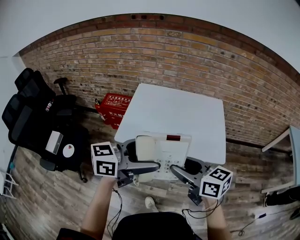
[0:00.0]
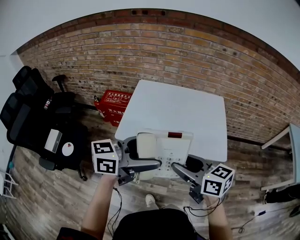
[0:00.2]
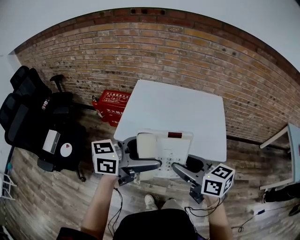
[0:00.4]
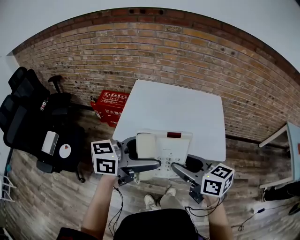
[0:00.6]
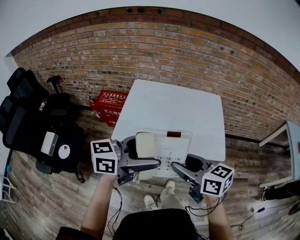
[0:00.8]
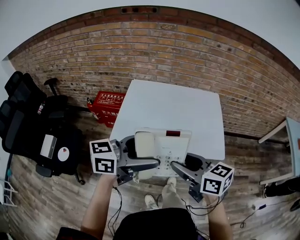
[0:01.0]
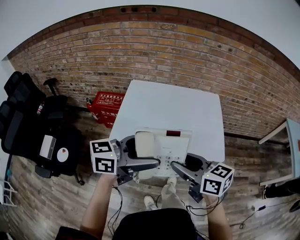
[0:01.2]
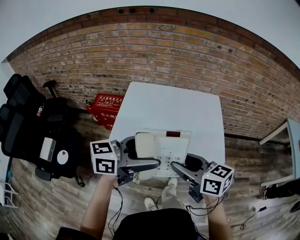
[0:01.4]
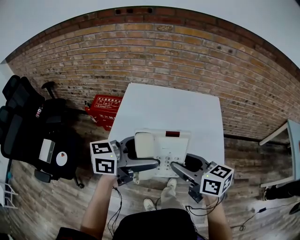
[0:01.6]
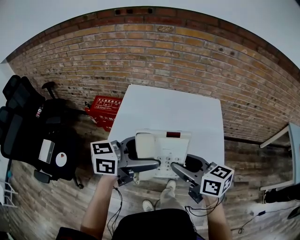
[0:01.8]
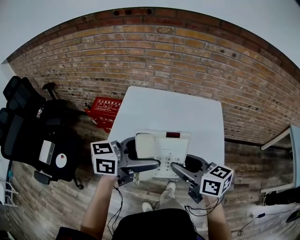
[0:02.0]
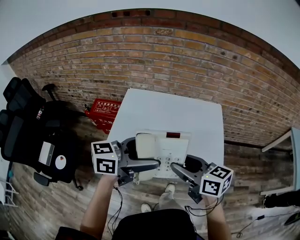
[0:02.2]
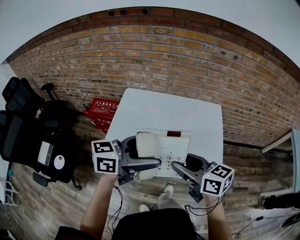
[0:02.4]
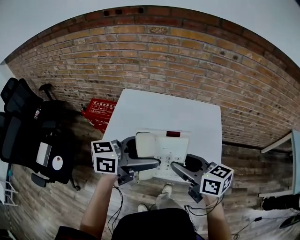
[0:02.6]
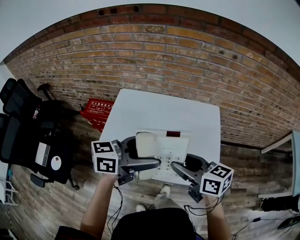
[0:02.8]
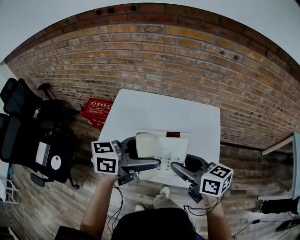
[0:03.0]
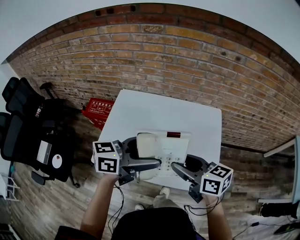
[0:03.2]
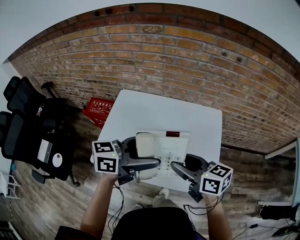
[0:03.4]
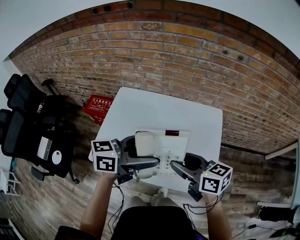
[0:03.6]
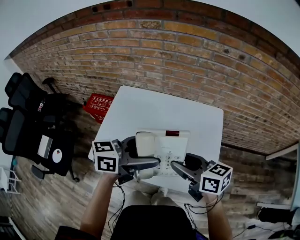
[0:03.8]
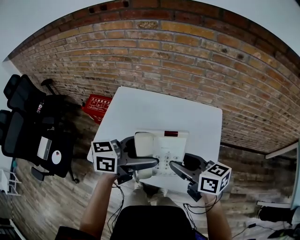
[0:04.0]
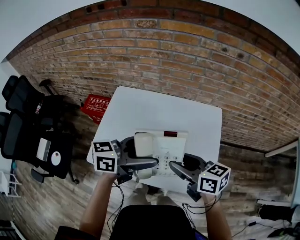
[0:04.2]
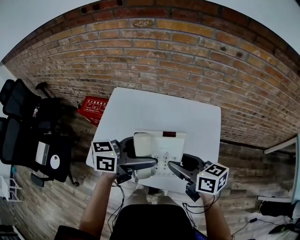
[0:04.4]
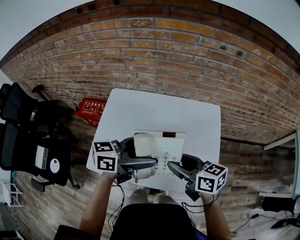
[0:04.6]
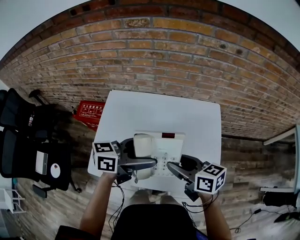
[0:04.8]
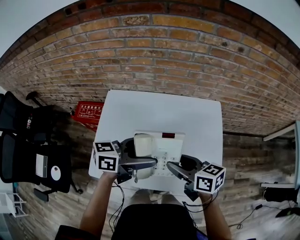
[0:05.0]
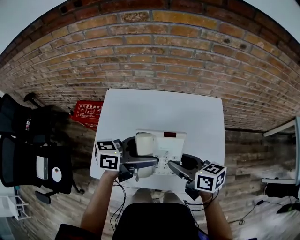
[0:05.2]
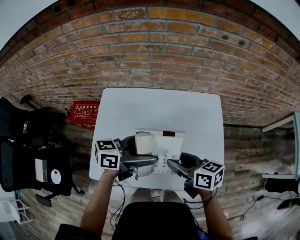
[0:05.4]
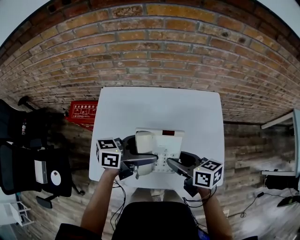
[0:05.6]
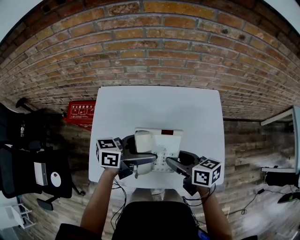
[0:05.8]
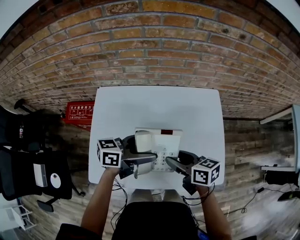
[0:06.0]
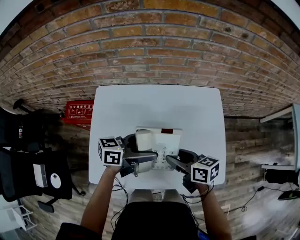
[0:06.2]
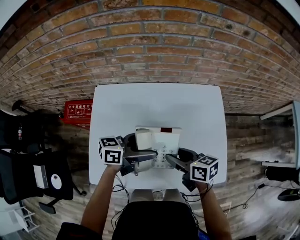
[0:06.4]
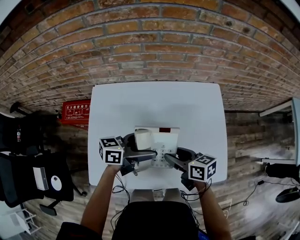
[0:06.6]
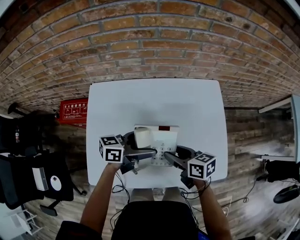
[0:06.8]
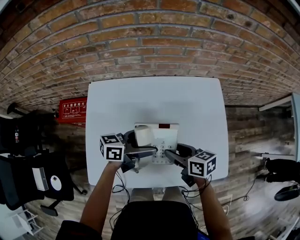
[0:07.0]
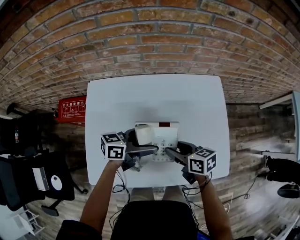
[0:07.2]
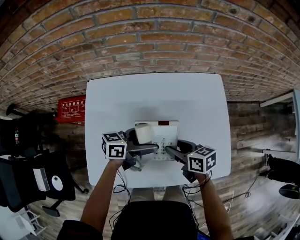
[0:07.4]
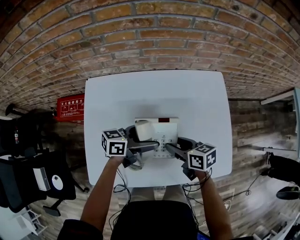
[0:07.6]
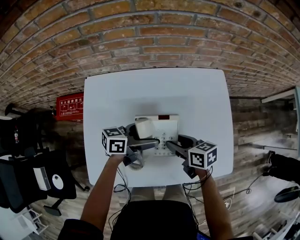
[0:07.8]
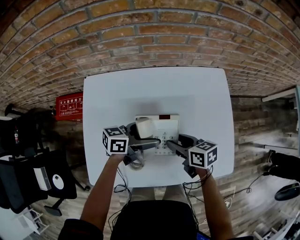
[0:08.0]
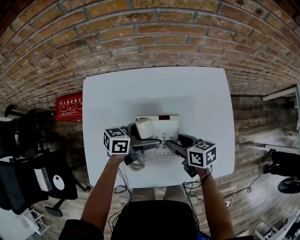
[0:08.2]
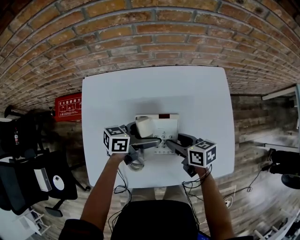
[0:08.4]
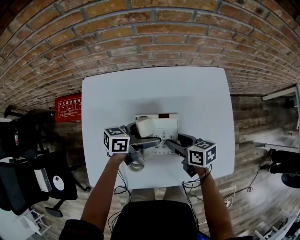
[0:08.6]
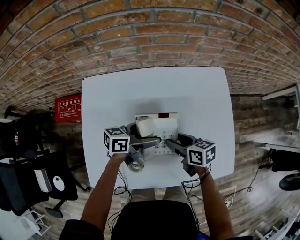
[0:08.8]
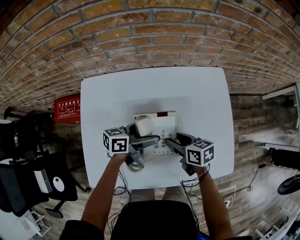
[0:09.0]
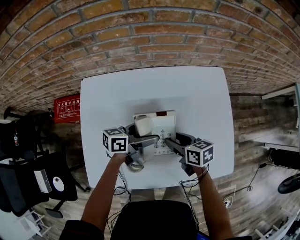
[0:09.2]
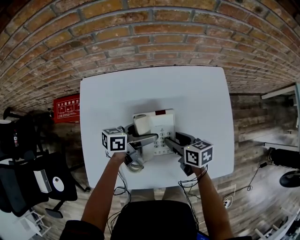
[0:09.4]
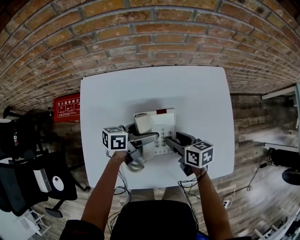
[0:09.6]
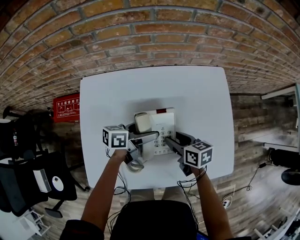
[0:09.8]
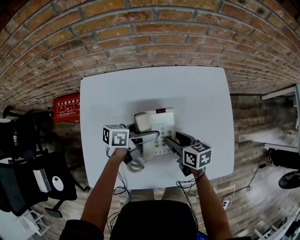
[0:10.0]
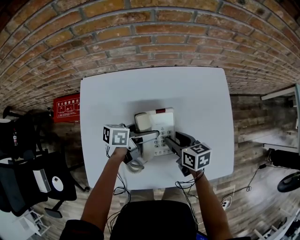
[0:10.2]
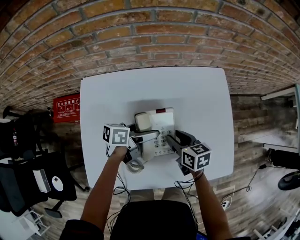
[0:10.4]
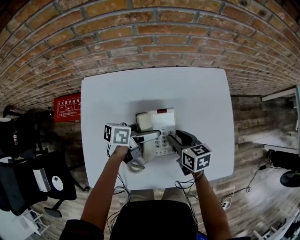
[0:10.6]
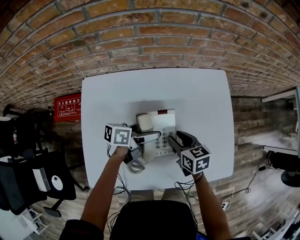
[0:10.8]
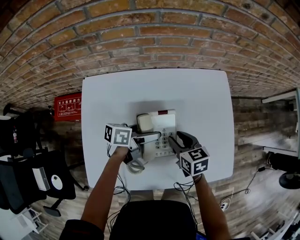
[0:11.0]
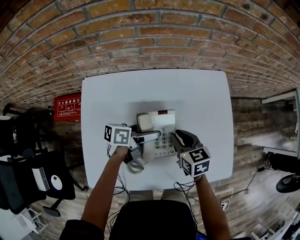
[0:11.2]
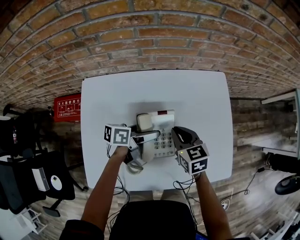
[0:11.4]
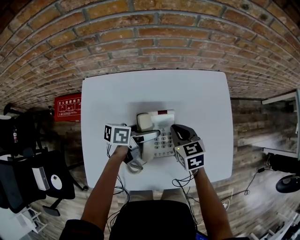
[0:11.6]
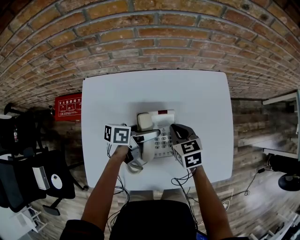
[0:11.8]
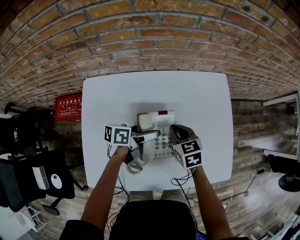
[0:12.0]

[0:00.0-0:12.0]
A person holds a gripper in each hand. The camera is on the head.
0:00.0 to 0:01.6: The grippers both shift forward by some 10 cm.
0:01.6 to 0:03.0: The grippers both shift forward and to the right by roughly 15 cm.
0:03.0 to 0:04.4: Both grippers travel together forward, some 5 cm.
0:04.4 to 0:06.0: The left gripper moves downward and forward, about 15 cm; the right gripper goes some 10 cm downward and to the left.
0:06.0 to 0:07.6: Both grippers travel together downward, some 10 cm.
0:07.6 to 0:09.0: The grippers move only a little.
0:09.0 to 0:10.4: The grippers move only a little.
0:10.4 to 0:12.0: The right gripper changes its angle by approximately 20 degrees, and closes its fingers.

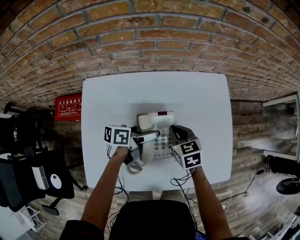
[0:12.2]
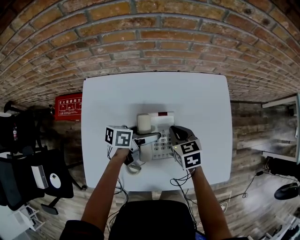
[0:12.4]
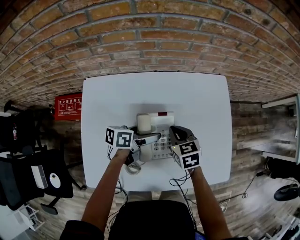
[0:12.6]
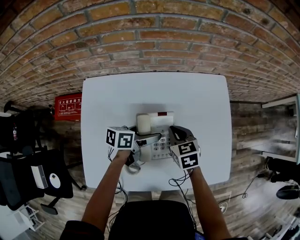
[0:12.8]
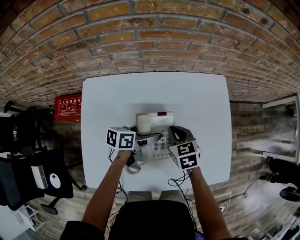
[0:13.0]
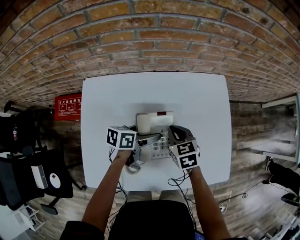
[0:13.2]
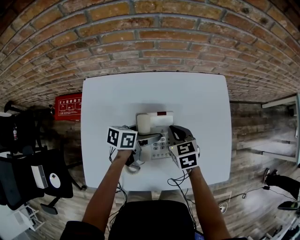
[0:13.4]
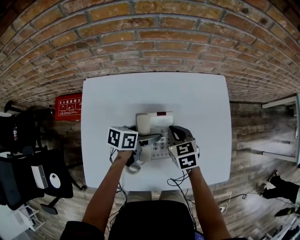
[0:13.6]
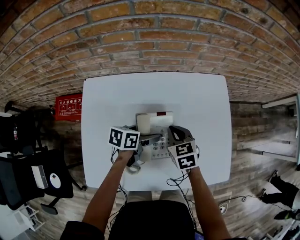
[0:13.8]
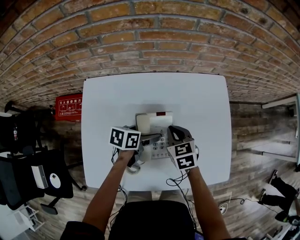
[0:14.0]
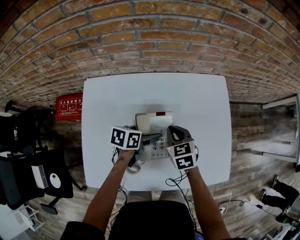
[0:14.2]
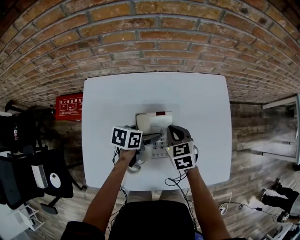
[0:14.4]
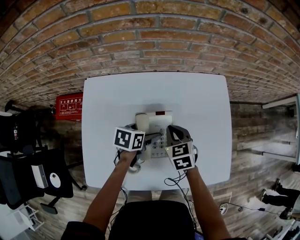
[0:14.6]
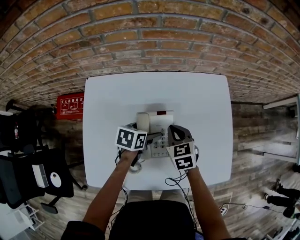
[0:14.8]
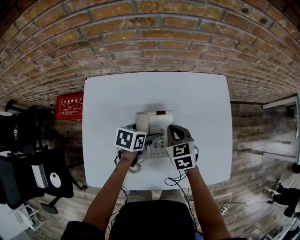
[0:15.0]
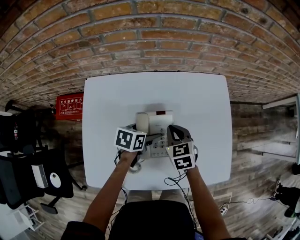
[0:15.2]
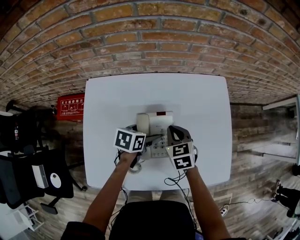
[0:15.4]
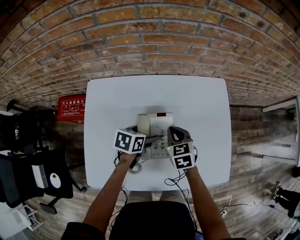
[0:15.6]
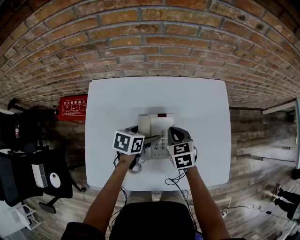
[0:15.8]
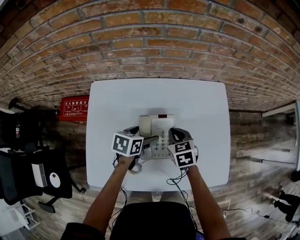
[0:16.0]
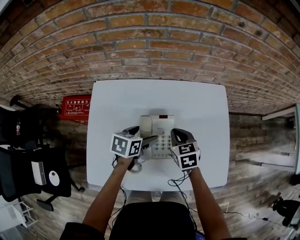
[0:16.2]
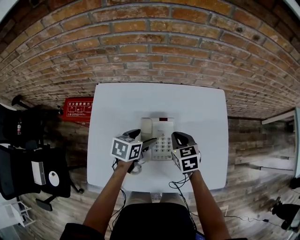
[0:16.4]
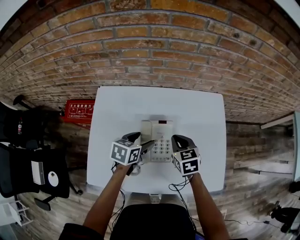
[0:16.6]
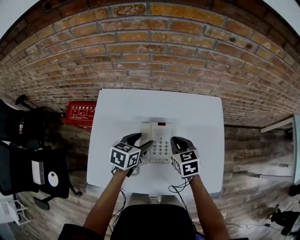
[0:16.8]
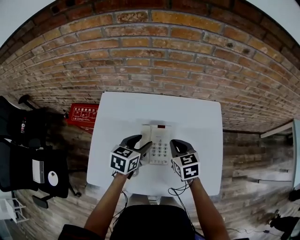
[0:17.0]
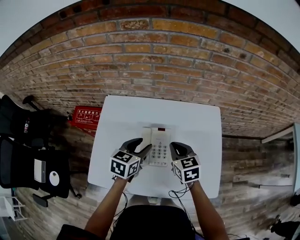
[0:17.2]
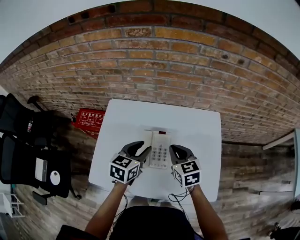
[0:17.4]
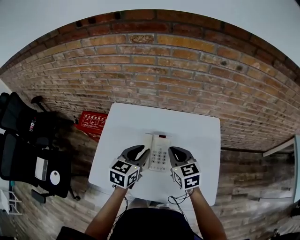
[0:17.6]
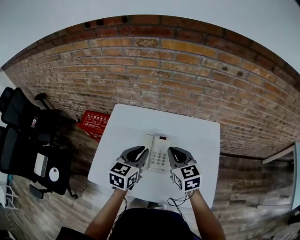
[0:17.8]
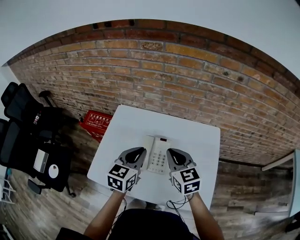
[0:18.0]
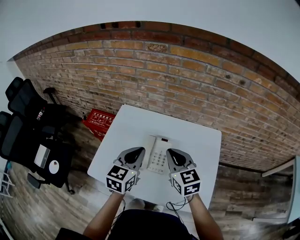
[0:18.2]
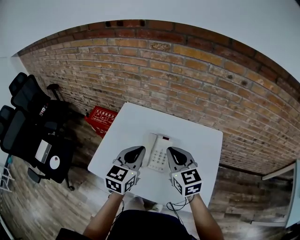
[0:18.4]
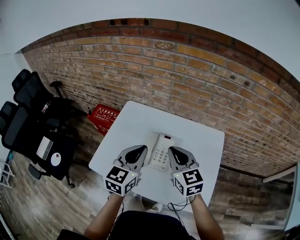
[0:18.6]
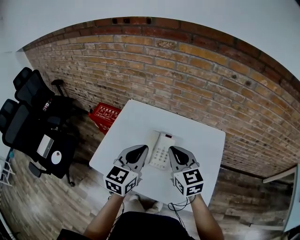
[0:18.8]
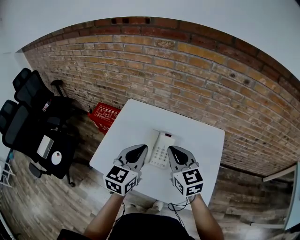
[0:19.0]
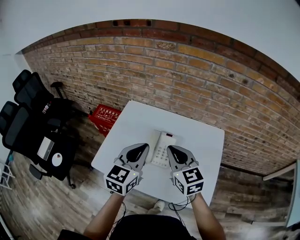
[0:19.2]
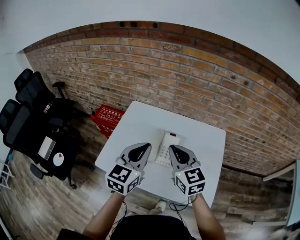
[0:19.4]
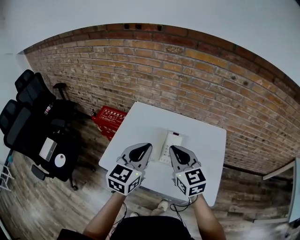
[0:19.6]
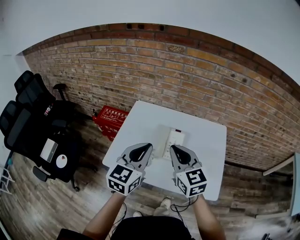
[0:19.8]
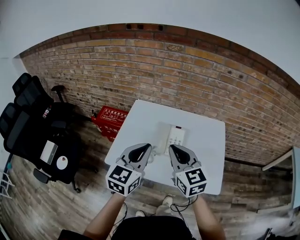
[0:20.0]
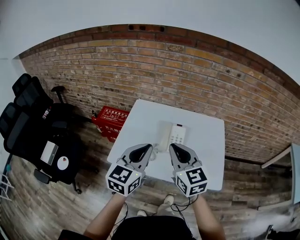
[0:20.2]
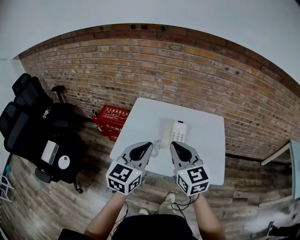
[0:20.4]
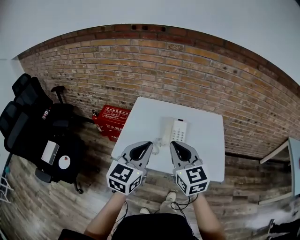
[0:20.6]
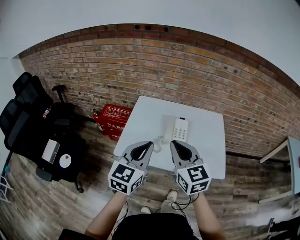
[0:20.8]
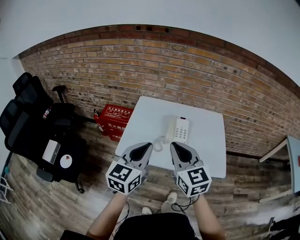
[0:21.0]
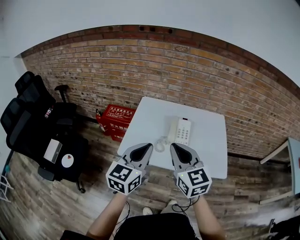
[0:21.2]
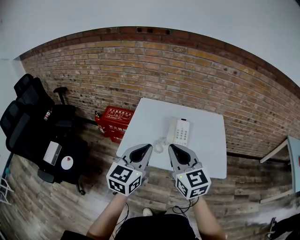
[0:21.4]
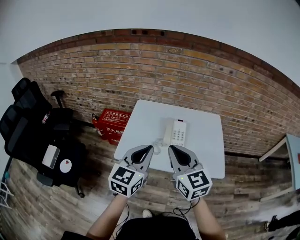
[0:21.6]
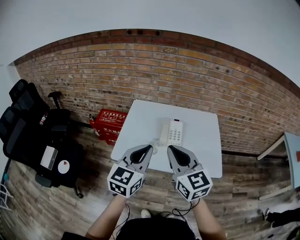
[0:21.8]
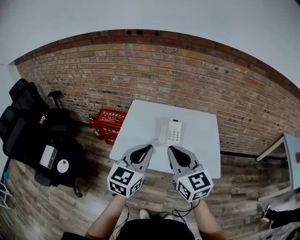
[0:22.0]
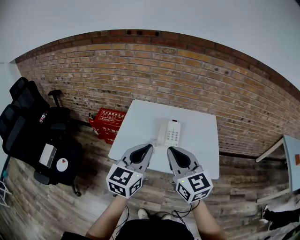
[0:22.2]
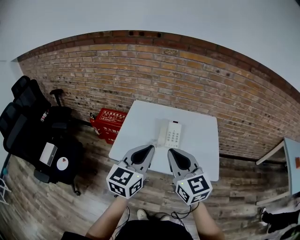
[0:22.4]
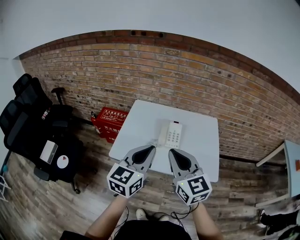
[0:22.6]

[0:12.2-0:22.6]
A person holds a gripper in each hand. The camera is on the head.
0:12.2 to 0:13.6: The grippers make only small movements.
0:13.6 to 0:15.2: The grippers stay close to where they were, moving slightly.
0:15.2 to 0:16.6: The left gripper shifts about 5 cm upward.
0:16.6 to 0:18.2: The right gripper travels upward by approximately 20 cm, and swivels some 30 degrees. The left gripper is displaced upward and backward by roughly 20 cm, swivels about 40 degrees, and closes up.
0:18.2 to 0:19.6: The right gripper travels backward, to the left and upward by roughly 10 cm. Meanwhile the left gripper is displaced backward and upward by some 10 cm.
0:19.6 to 0:21.2: Both grippers travel together backward and to the left, approximately 20 cm.
0:21.2 to 0:22.6: The two grippers go some 5 cm to the right.

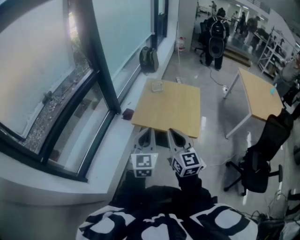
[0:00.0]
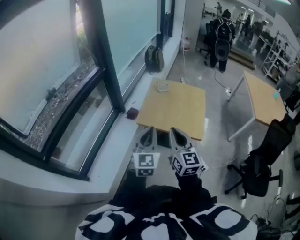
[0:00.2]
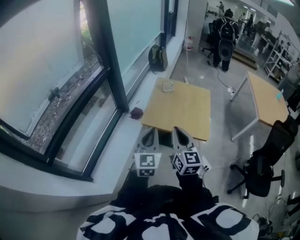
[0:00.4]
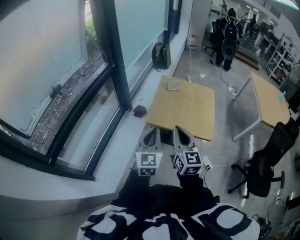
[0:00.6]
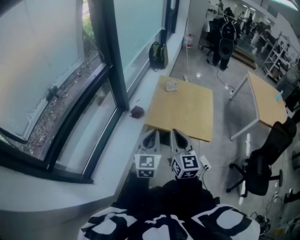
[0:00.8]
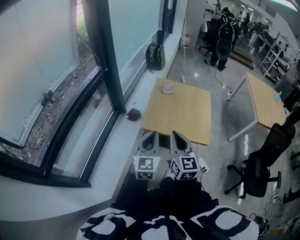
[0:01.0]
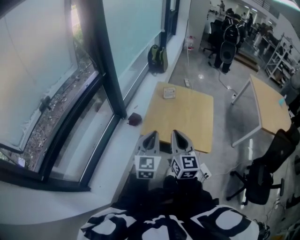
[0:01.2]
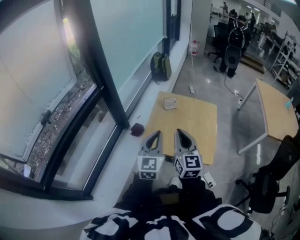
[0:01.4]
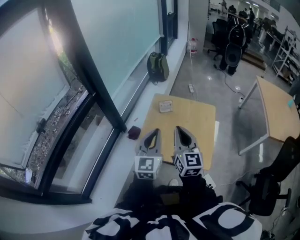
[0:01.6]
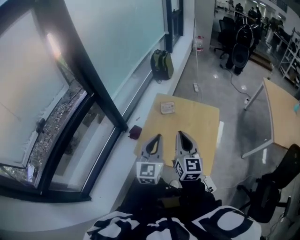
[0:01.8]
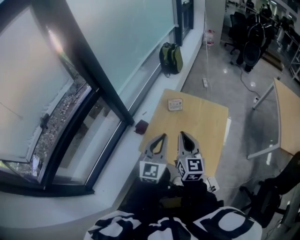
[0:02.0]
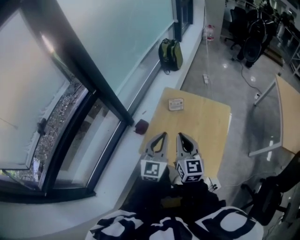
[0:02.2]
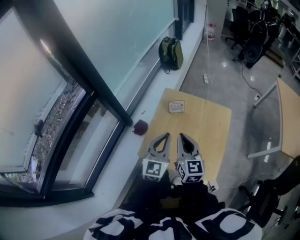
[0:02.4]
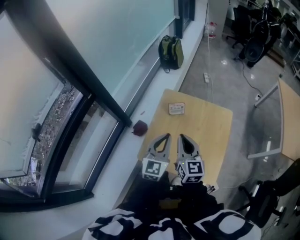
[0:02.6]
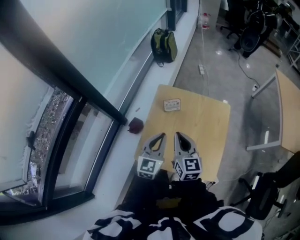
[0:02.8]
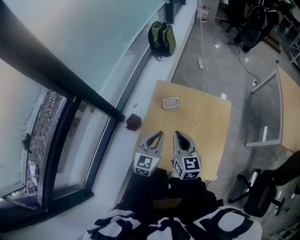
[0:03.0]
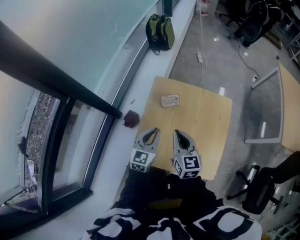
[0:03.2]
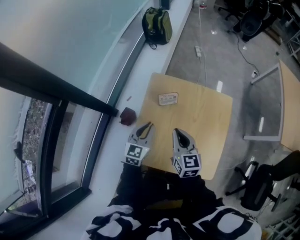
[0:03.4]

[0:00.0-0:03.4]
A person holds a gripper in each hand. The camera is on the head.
0:00.0 to 0:01.6: Both grippers move forward, about 25 cm.
0:01.6 to 0:03.4: The grippers both shift downward and forward by some 30 cm. The right gripper rotates about 20 degrees. The left gripper turns by about 30 degrees.
